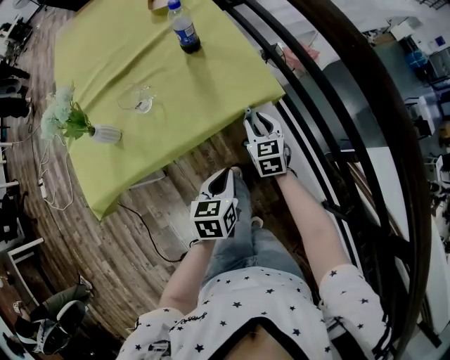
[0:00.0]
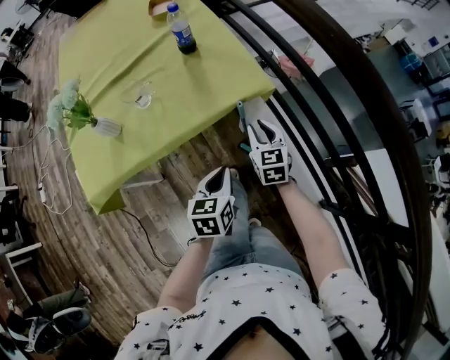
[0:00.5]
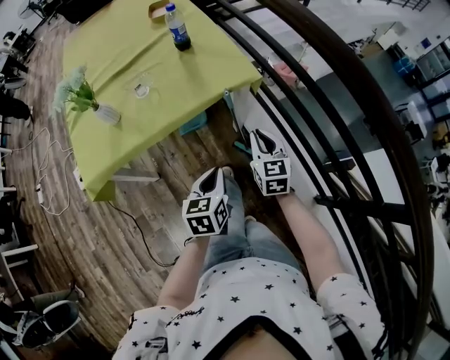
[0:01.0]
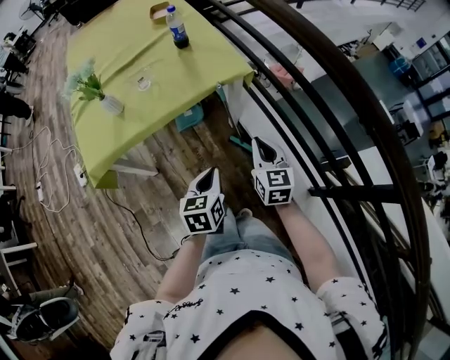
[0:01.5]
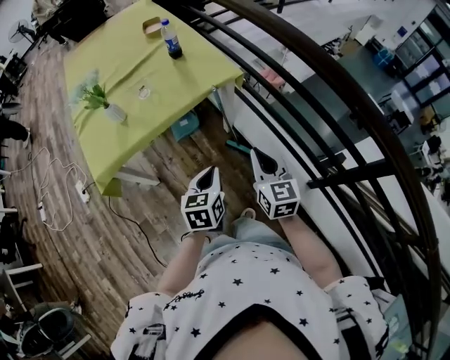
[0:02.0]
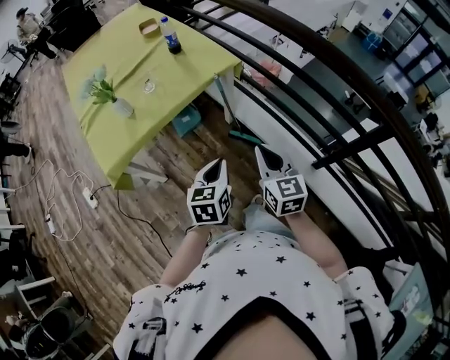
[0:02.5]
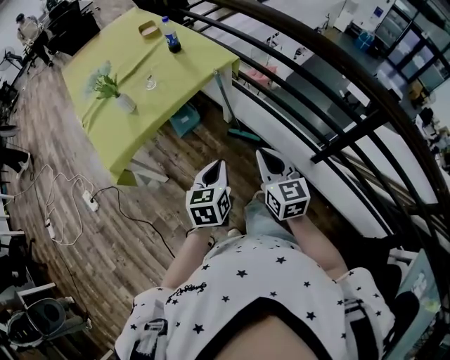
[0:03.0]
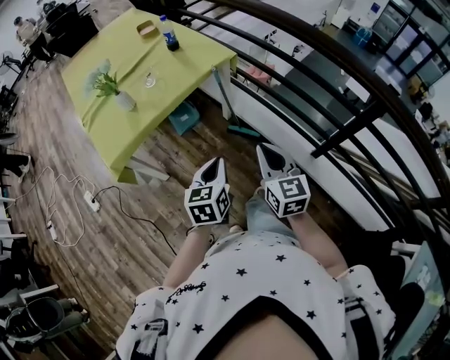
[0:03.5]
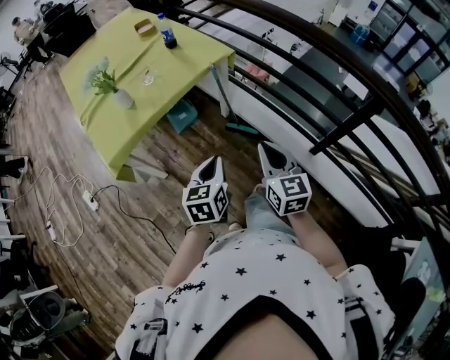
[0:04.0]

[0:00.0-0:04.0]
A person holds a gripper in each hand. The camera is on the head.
0:00.0 to 0:02.0: The right gripper goes approximately 35 cm backward and upward, rotates about 20 degrees, and closes up; the left gripper heads backward and upward, covering approximately 20 cm.
0:02.0 to 0:04.0: The grippers both shift backward by about 15 cm.

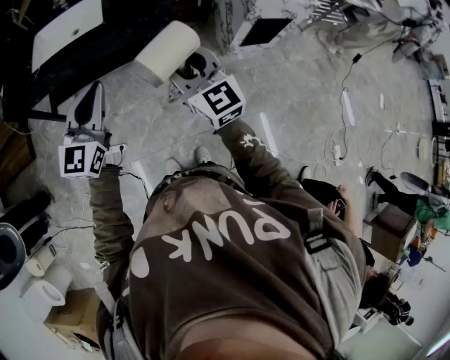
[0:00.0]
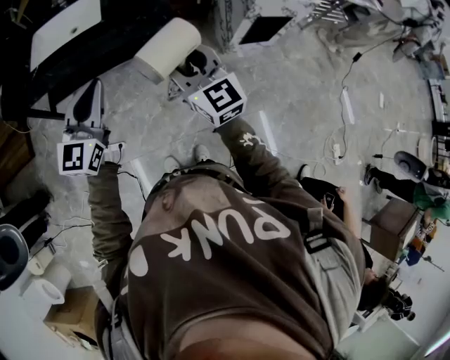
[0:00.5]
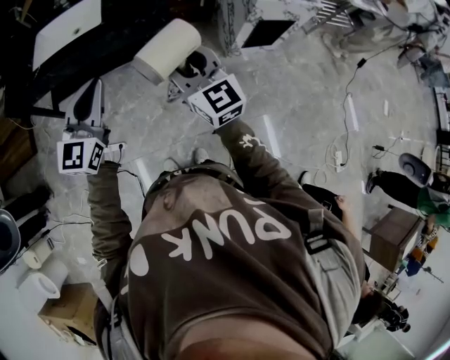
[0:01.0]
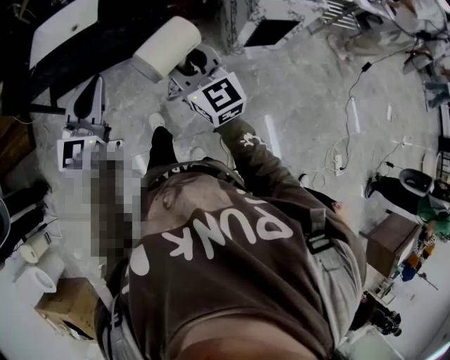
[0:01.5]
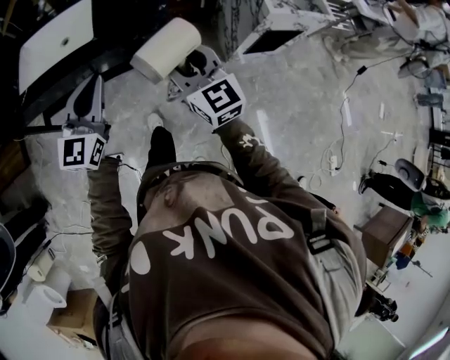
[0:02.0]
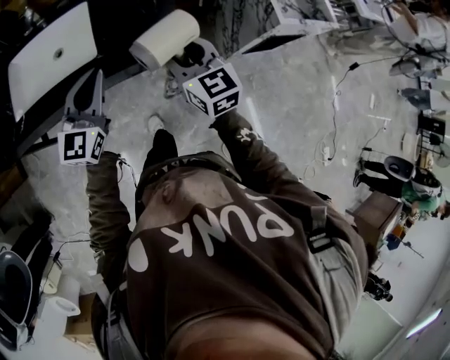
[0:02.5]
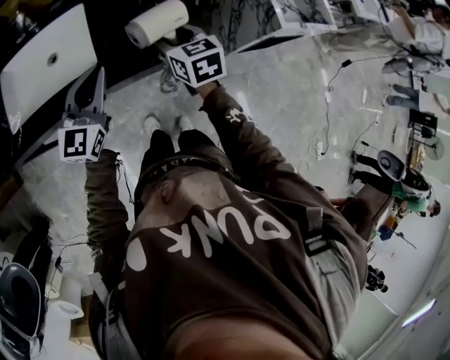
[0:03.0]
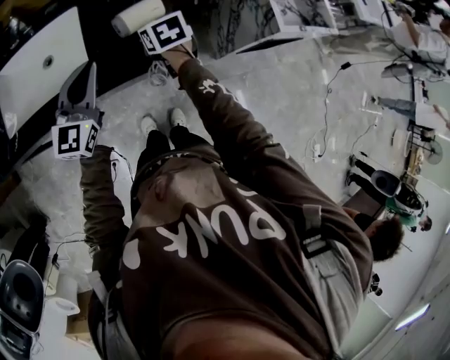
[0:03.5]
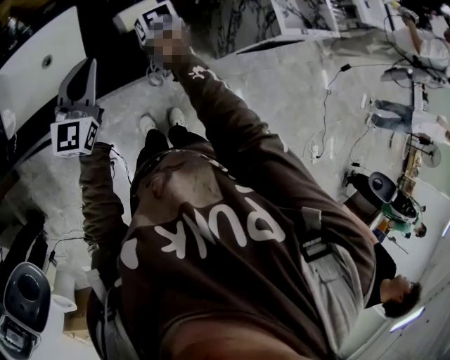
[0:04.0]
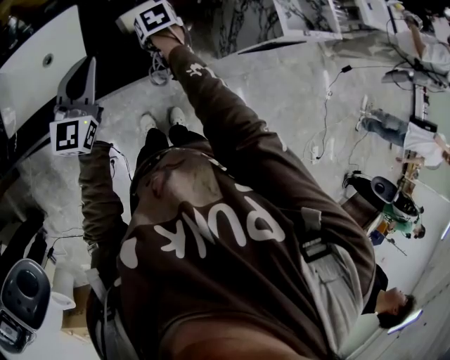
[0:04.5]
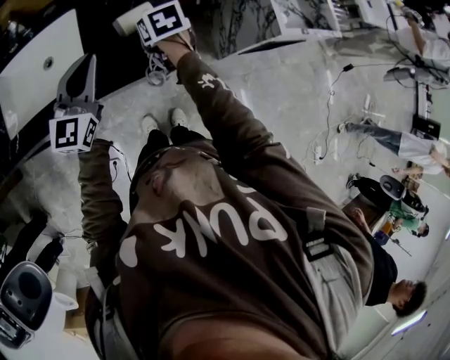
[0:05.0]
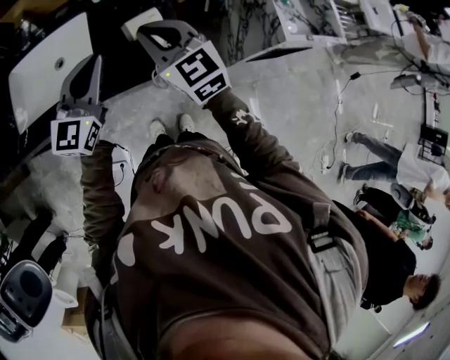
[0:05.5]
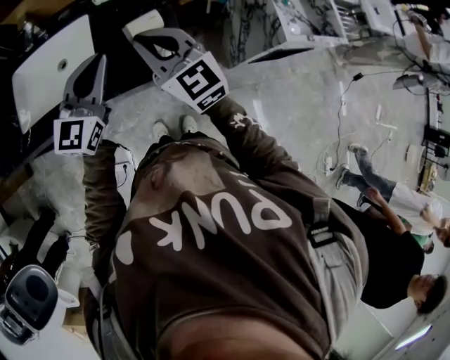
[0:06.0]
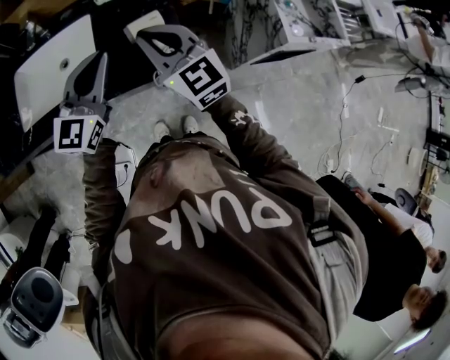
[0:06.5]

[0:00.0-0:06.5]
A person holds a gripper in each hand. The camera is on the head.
0:00.0 to 0:02.0: The grippers both shift forward by roughly 20 cm.
0:02.0 to 0:04.5: The left gripper shifts about 25 cm forward; the right gripper moves forward and downward, approximately 40 cm, and tilts its fingers some 60 degrees downward.
0:04.5 to 0:06.5: The right gripper travels upward by roughly 25 cm, points its fingers some 60 degrees further upward, and closes. The left gripper is displaced upward by some 5 cm.

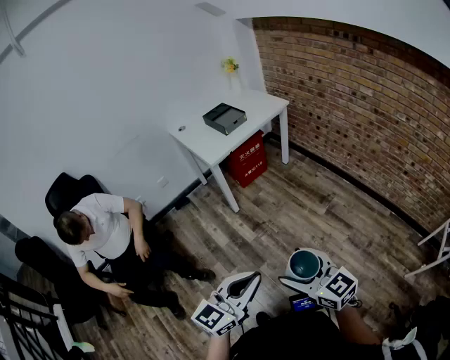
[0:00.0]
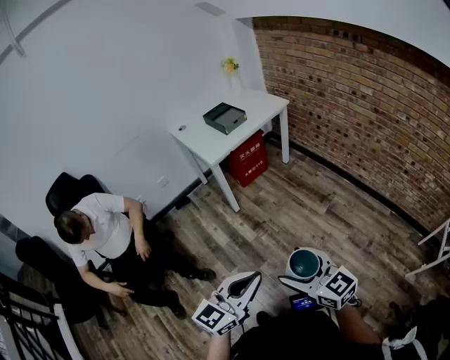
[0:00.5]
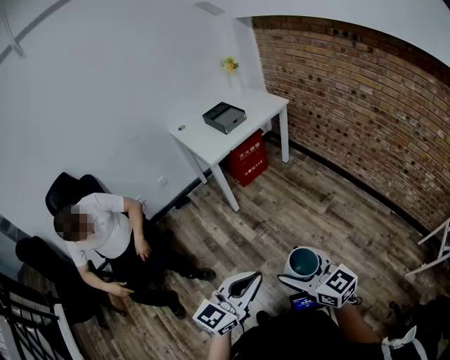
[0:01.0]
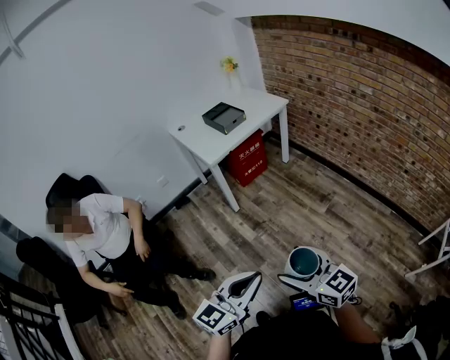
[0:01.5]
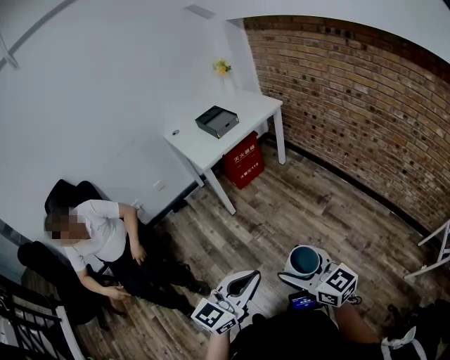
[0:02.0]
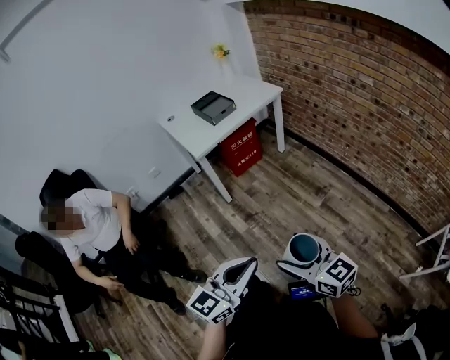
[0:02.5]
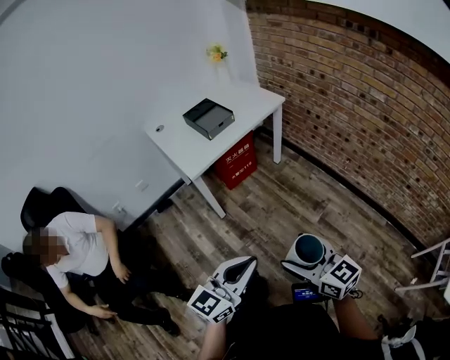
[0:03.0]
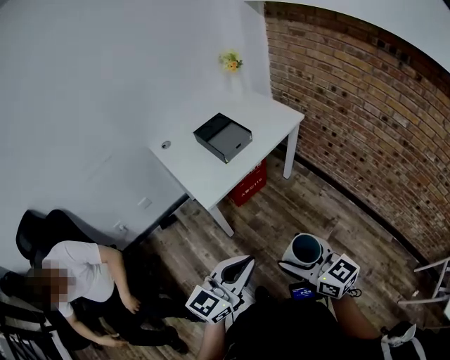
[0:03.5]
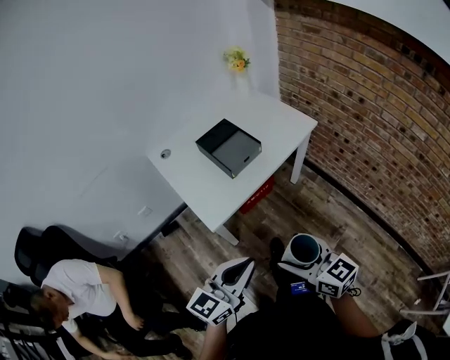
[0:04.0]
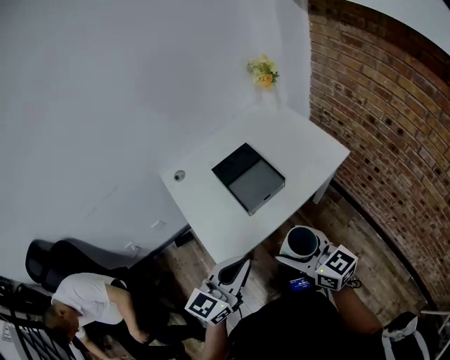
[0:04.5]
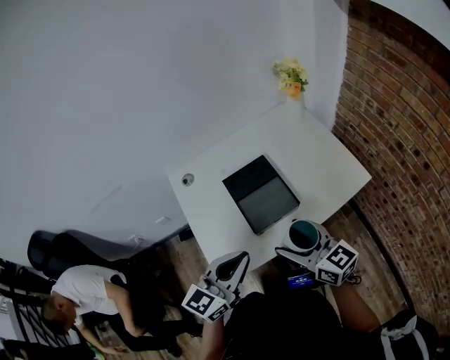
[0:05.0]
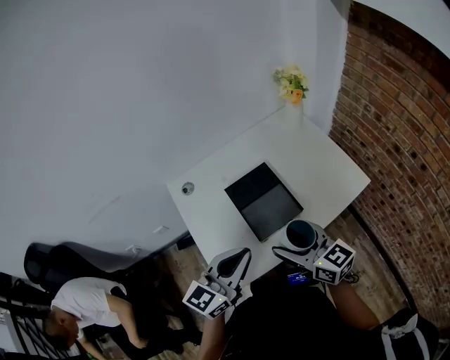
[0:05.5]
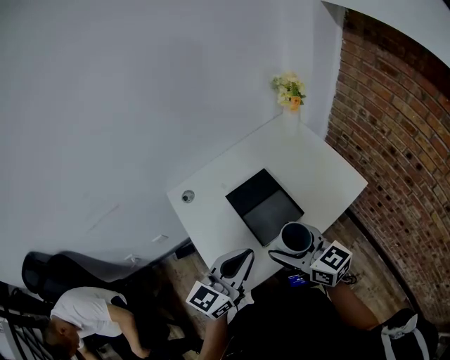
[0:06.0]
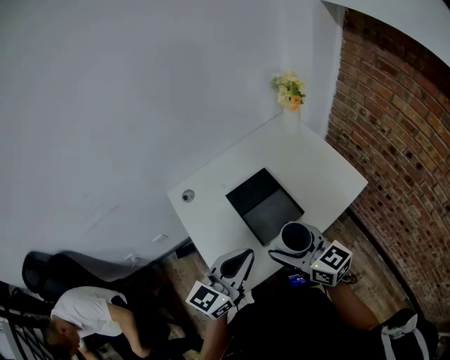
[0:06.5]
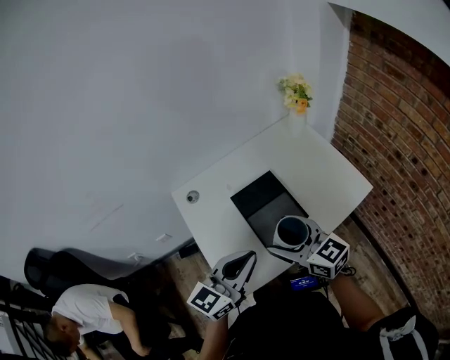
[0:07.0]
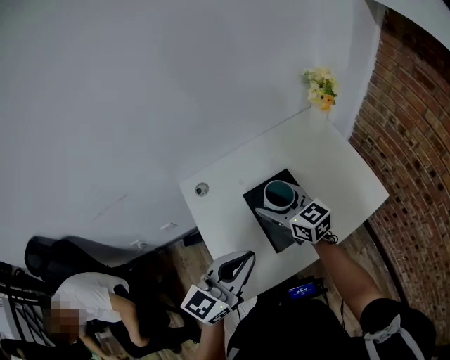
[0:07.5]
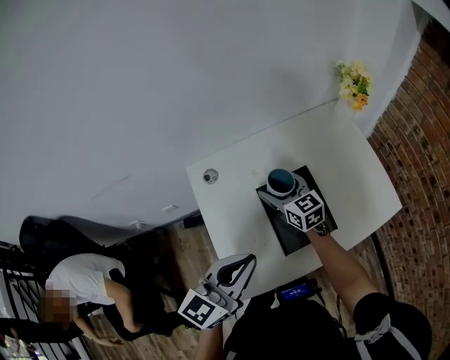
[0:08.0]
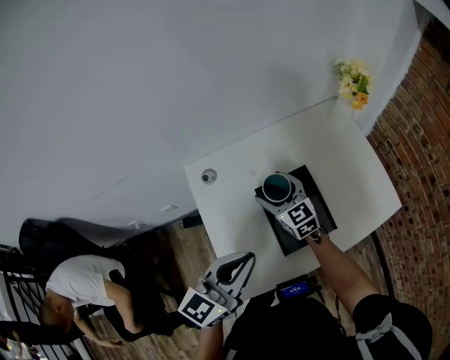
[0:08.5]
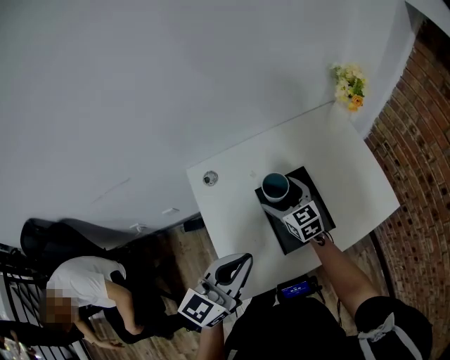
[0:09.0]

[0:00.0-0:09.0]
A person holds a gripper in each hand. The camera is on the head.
0:00.0 to 0:02.0: Both grippers move to the right, about 5 cm.
0:02.0 to 0:04.5: The two grippers travel together, forward, roughly 80 cm.
0:04.5 to 0:07.0: Both grippers travel together forward, approximately 20 cm.
0:07.0 to 0:09.0: The right gripper moves forward and downward, approximately 25 cm; the left gripper moves to the left and forward, some 10 cm.

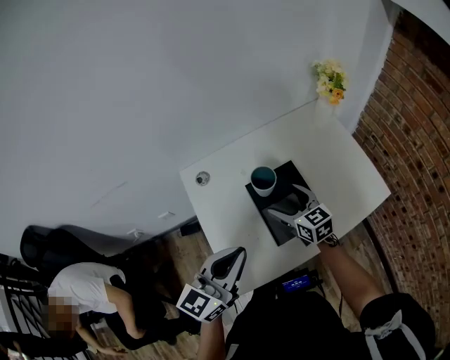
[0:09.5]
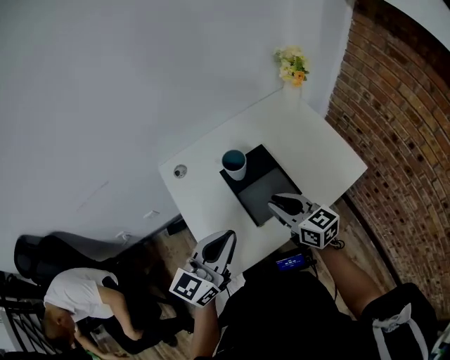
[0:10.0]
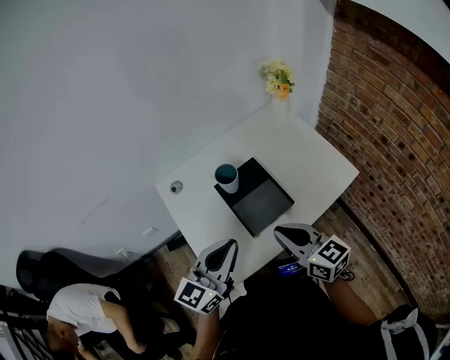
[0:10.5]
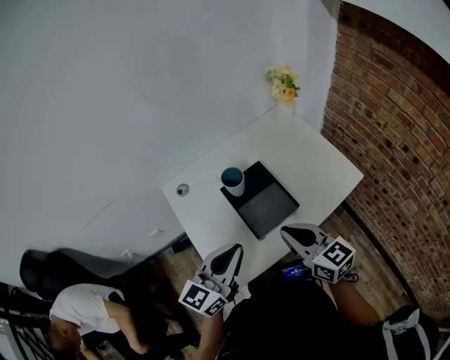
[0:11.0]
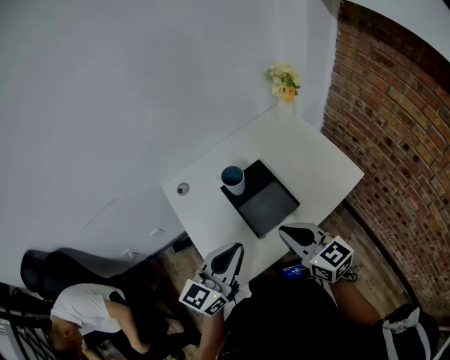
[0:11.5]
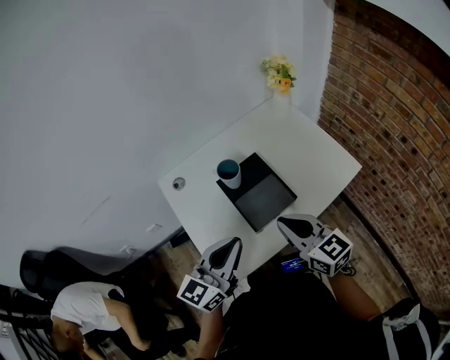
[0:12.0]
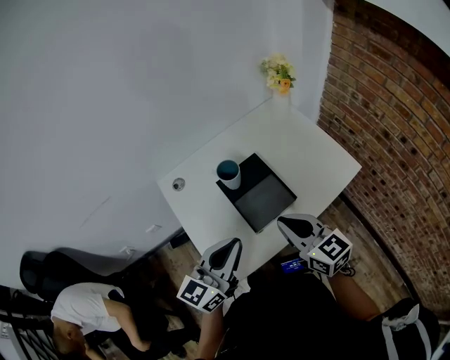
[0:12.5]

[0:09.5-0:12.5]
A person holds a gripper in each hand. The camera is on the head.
0:09.5 to 0:11.0: The left gripper shifts by about 5 cm; the right gripper is displaced backward and upward by roughly 20 cm, and closes up.
0:11.0 to 0:12.5: Both grippers stay about where they are.

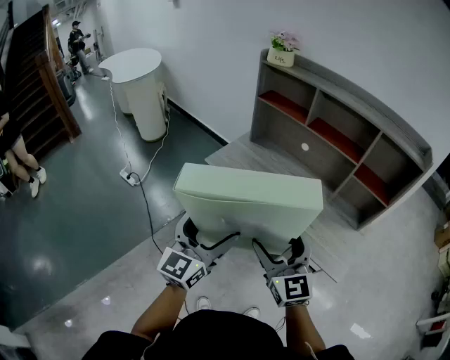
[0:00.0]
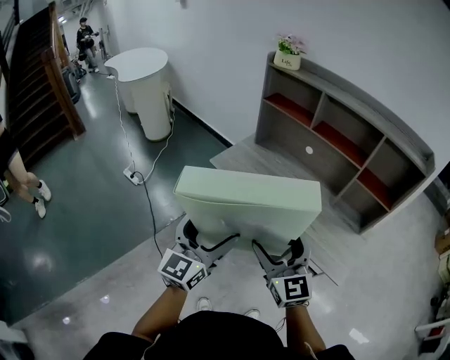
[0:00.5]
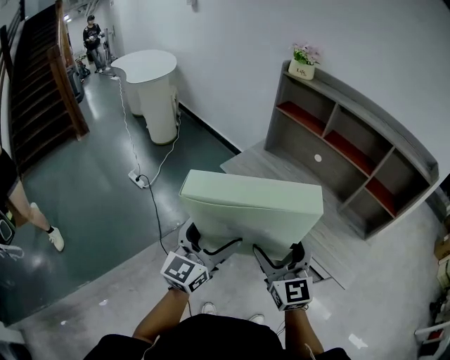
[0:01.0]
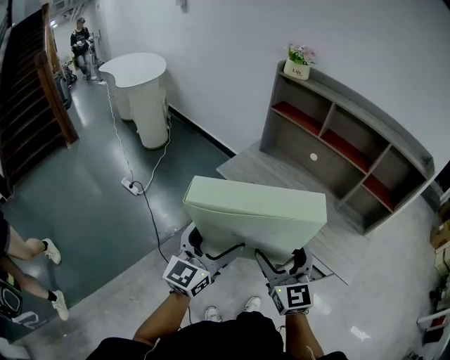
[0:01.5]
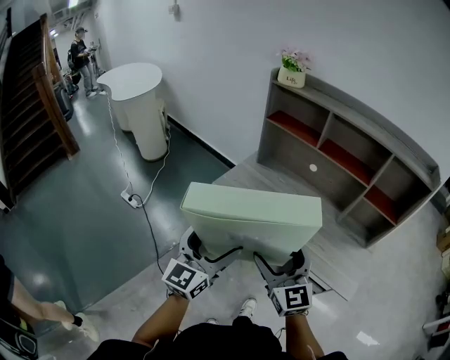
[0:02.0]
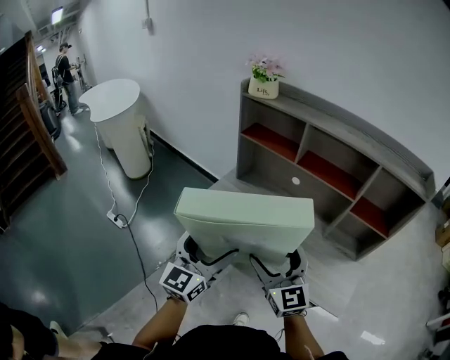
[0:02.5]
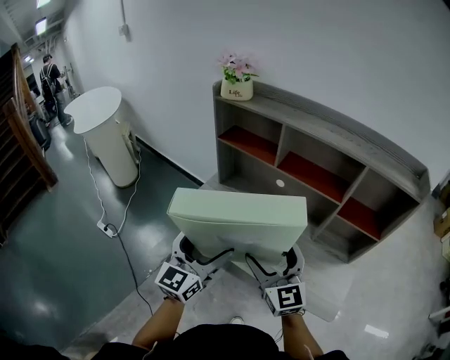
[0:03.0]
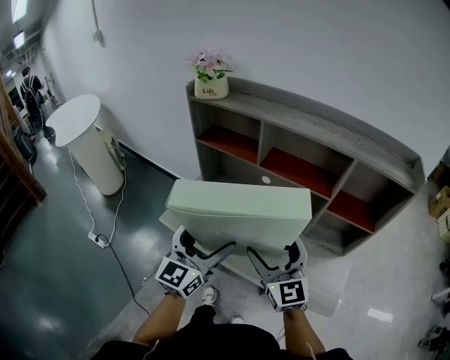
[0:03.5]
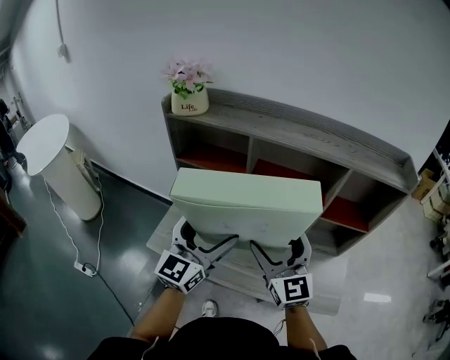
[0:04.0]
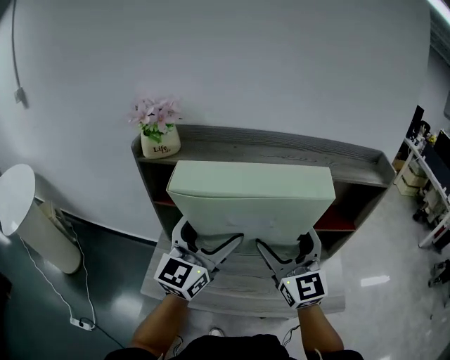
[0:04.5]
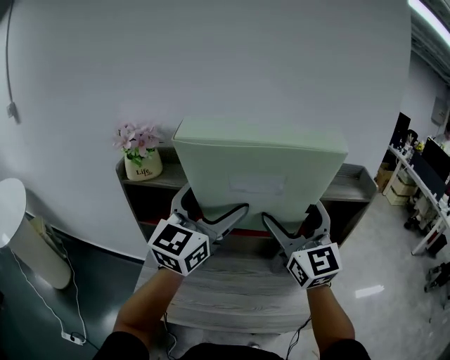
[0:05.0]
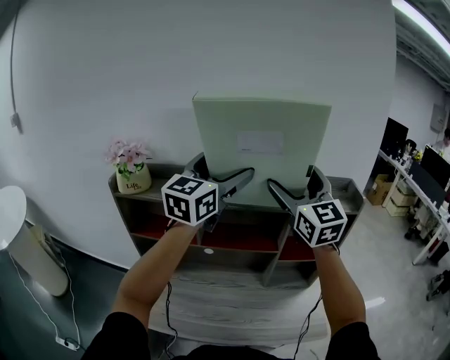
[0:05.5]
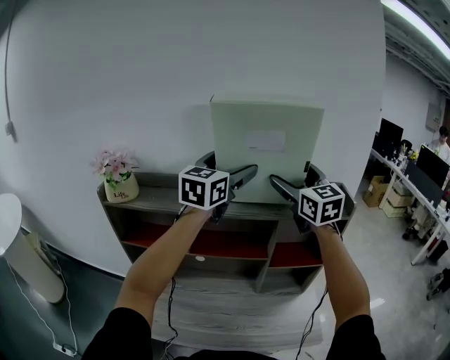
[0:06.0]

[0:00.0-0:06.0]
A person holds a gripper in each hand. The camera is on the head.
0:00.0 to 0:02.0: The left gripper travels forward and to the left by roughly 10 cm; the right gripper shifts some 10 cm to the left and forward.
0:02.0 to 0:04.0: Both grippers move forward and to the right, about 35 cm. The right gripper rotates some 20 degrees, while the left gripper turns by roughly 20 degrees.
0:04.0 to 0:06.0: Both grippers travel together forward, upward and to the right, approximately 40 cm.
